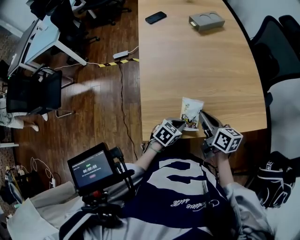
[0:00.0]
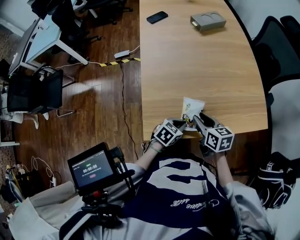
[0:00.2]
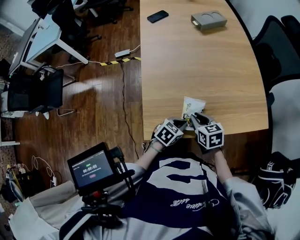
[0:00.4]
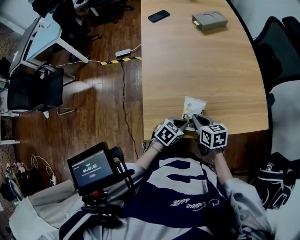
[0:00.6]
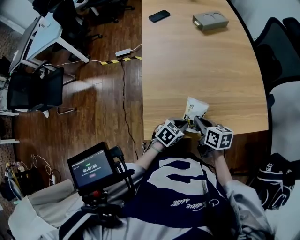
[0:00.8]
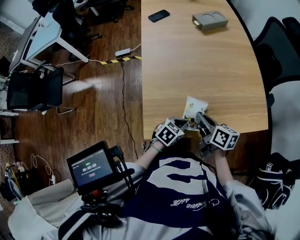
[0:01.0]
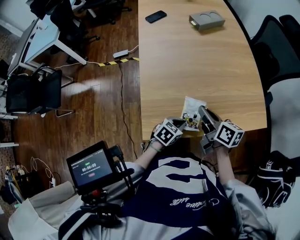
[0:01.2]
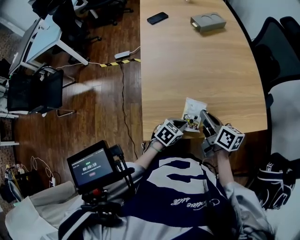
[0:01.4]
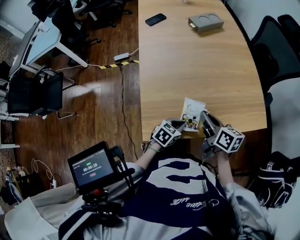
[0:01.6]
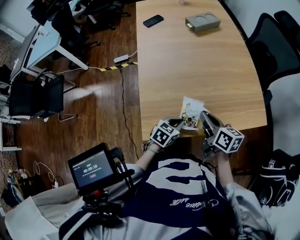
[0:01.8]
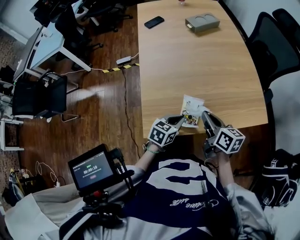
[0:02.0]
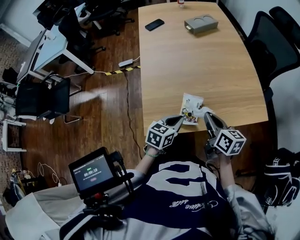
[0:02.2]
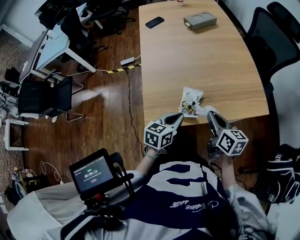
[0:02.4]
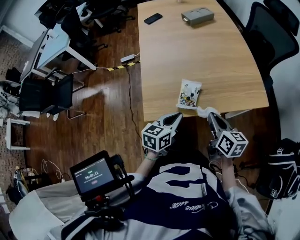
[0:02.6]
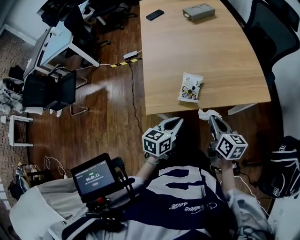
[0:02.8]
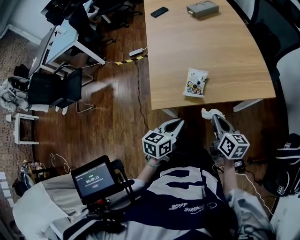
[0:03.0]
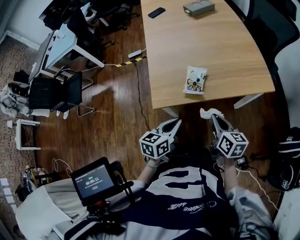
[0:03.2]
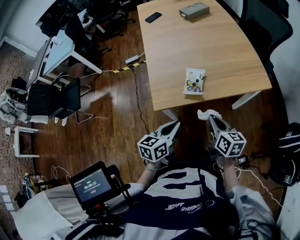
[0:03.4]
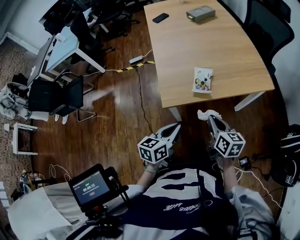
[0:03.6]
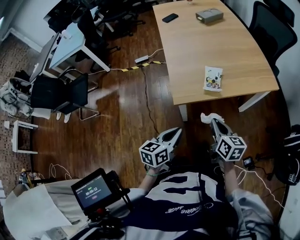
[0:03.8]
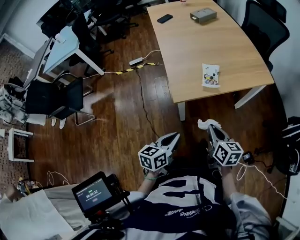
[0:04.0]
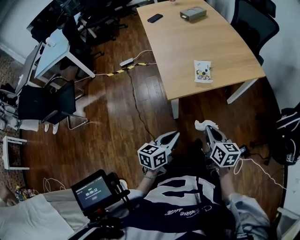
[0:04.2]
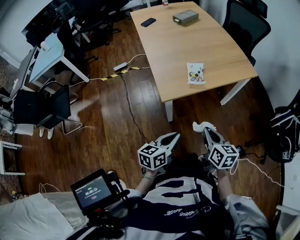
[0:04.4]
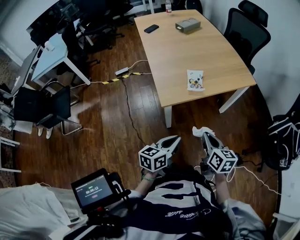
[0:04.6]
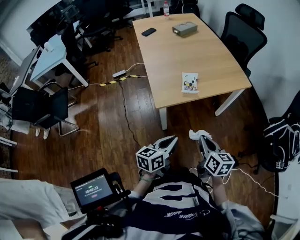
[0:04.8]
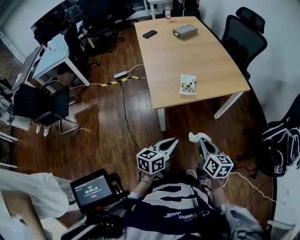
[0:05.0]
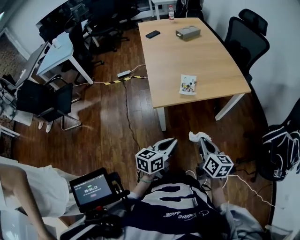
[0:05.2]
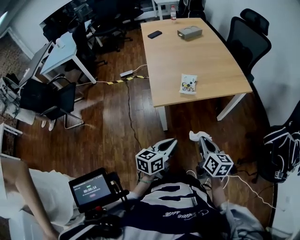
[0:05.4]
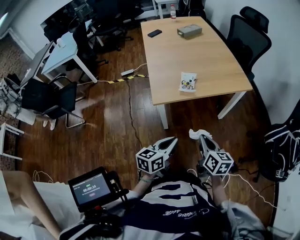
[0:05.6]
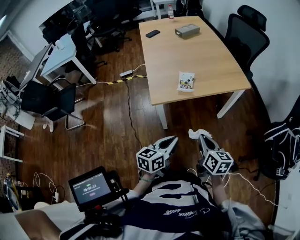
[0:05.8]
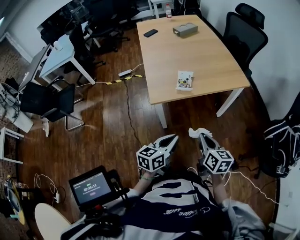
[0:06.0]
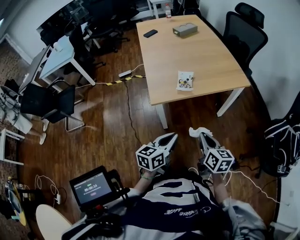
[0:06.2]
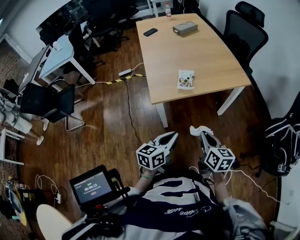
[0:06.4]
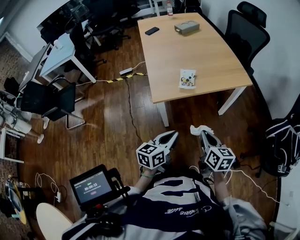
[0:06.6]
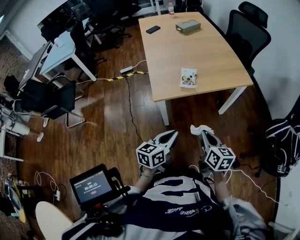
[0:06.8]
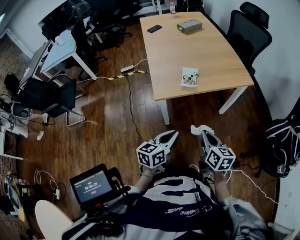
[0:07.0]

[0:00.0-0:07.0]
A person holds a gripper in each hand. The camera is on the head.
0:00.0 to 0:01.4: The right gripper reaches approximately 5 cm downward, then returns, and opens, then closes again.
0:01.4 to 0:02.8: The right gripper heads backward and to the right, covering about 20 cm. The left gripper goes about 20 cm backward and upward, and changes its angle by roughly 30 degrees.
0:02.8 to 0:04.2: The two grippers go some 25 cm backward and to the left.
0:04.2 to 0:05.6: The grippers both shift to the right by some 10 cm.
0:05.6 to 0:07.0: The grippers make only small movements.

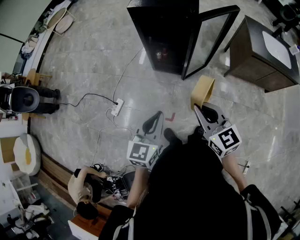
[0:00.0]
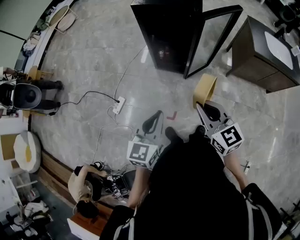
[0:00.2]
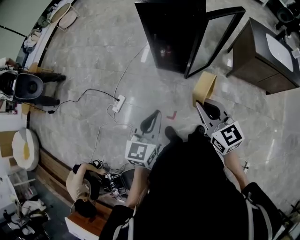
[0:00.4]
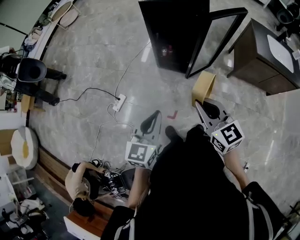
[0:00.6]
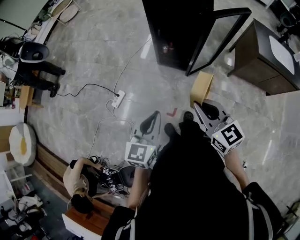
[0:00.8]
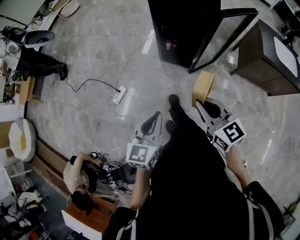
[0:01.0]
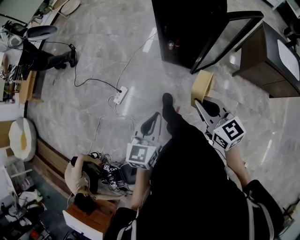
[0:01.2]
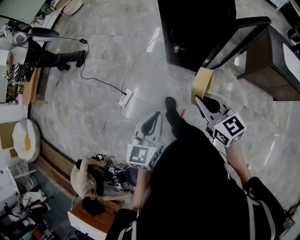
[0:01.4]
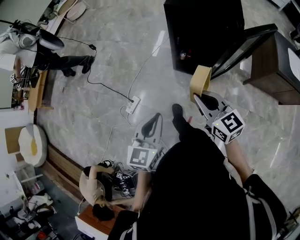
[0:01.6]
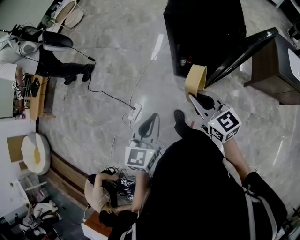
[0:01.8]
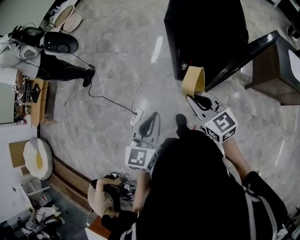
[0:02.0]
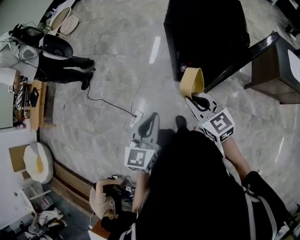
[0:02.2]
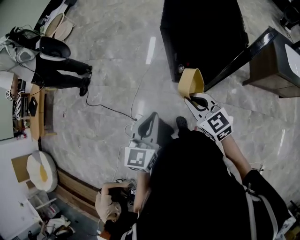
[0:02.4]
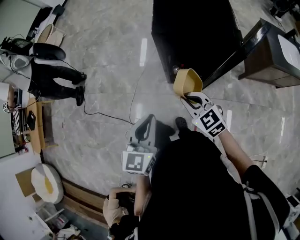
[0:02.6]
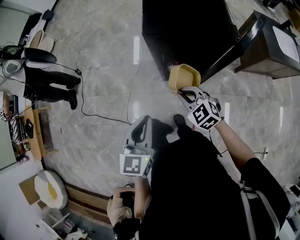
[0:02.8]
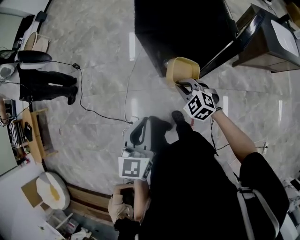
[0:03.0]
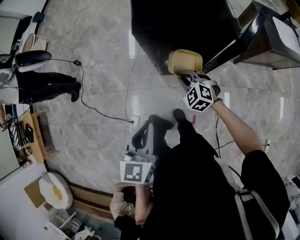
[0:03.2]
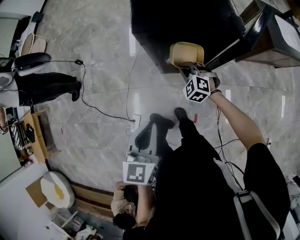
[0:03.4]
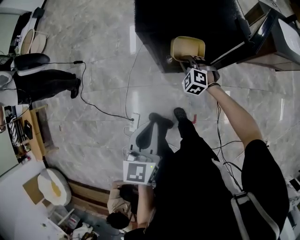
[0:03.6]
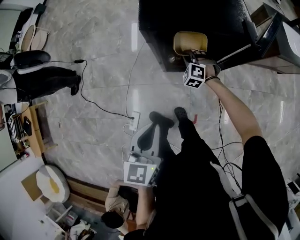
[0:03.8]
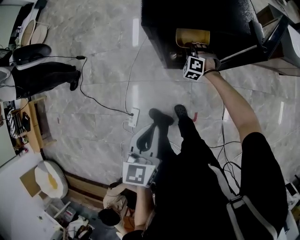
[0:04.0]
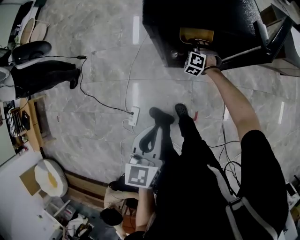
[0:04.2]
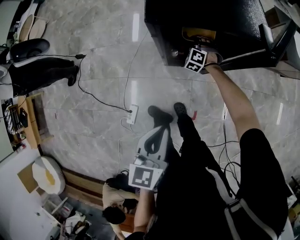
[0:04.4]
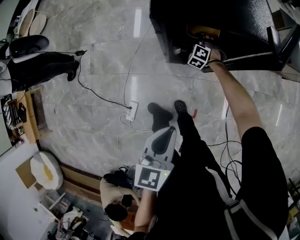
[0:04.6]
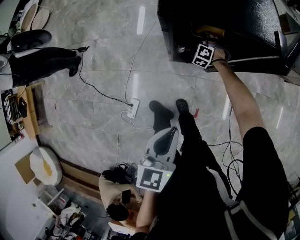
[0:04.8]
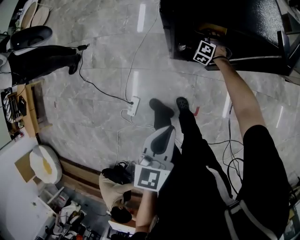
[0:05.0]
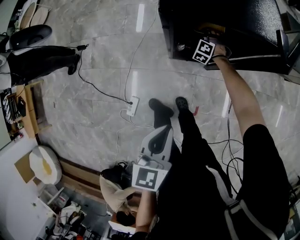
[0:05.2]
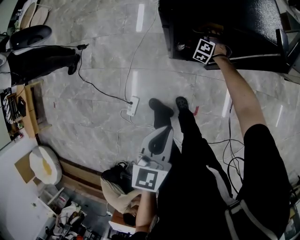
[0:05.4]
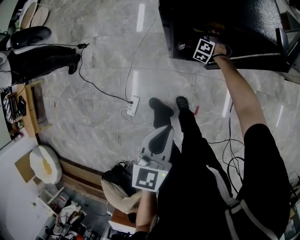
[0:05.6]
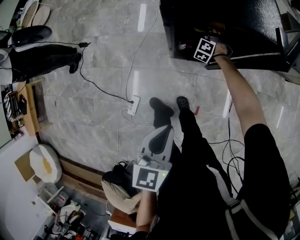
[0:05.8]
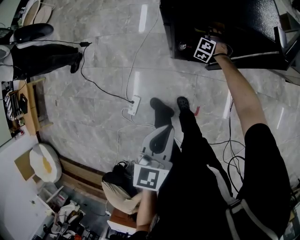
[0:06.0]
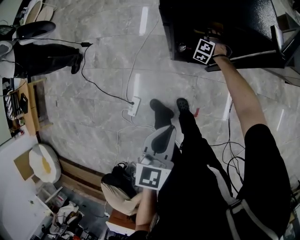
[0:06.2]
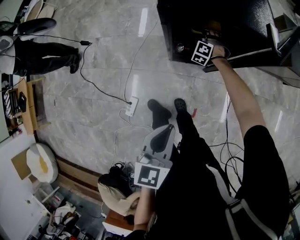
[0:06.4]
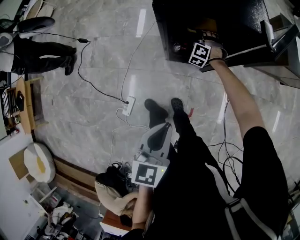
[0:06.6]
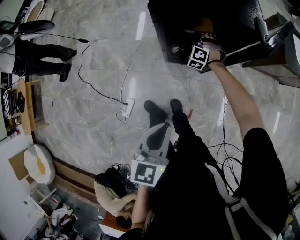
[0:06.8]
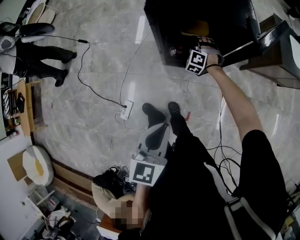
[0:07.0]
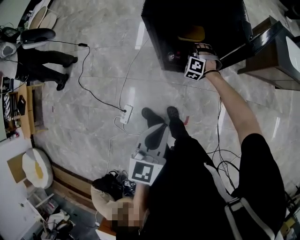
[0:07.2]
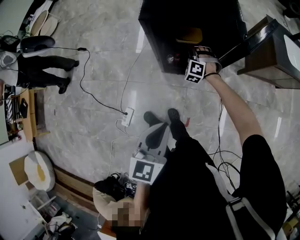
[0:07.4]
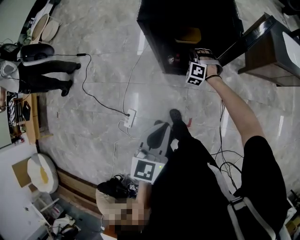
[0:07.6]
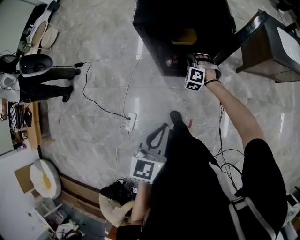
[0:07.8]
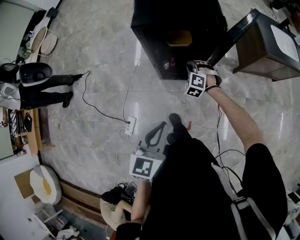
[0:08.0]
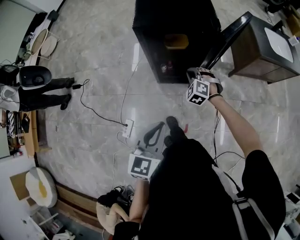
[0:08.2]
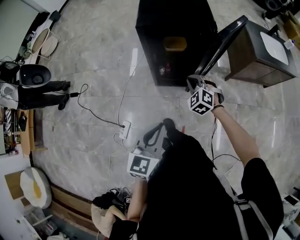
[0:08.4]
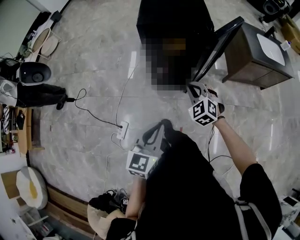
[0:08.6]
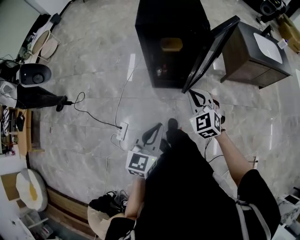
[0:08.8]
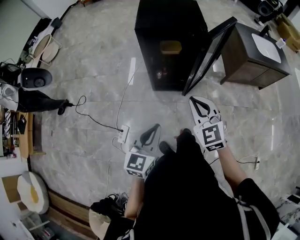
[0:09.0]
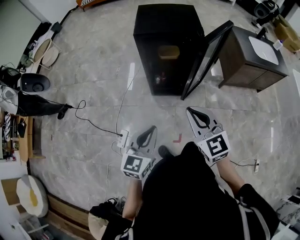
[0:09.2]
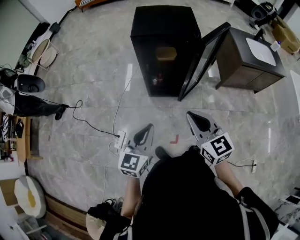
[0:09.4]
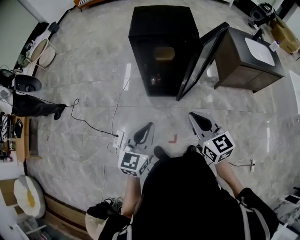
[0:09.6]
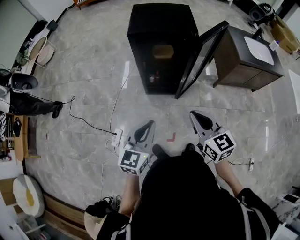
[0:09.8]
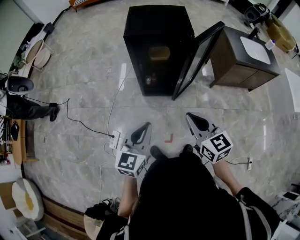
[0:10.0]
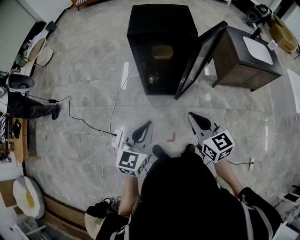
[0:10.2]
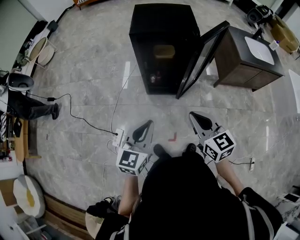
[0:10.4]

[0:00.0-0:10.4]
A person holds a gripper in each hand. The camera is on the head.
0:00.0 to 0:01.4: The right gripper shifts some 15 cm forward and to the left. The left gripper heads to the left and forward, covering about 10 cm.
0:01.4 to 0:03.0: The right gripper is displaced forward and downward by some 30 cm, and changes its angle by about 40 degrees. The left gripper is displaced forward by some 25 cm.
0:03.0 to 0:04.4: The left gripper moves downward, about 5 cm, while the right gripper shifts roughly 30 cm forward and downward, and swivels roughly 40 degrees.
0:04.4 to 0:06.0: The right gripper opens its fingers.
0:06.0 to 0:07.4: The left gripper is displaced to the right by some 10 cm; the right gripper moves upward and backward, some 15 cm, and closes its fingers.
0:07.4 to 0:09.0: The left gripper heads backward, covering some 15 cm. Meanwhile the right gripper travels backward and upward by approximately 50 cm, and twists about 50 degrees clockwise, seen from behind.
0:09.0 to 0:10.4: The right gripper travels backward by some 5 cm, and turns by some 30 degrees.

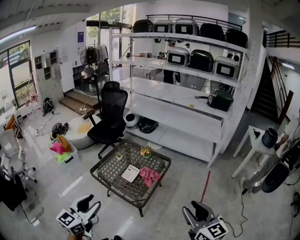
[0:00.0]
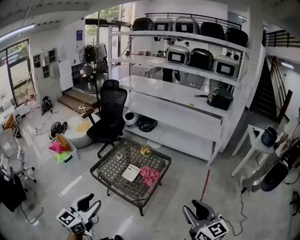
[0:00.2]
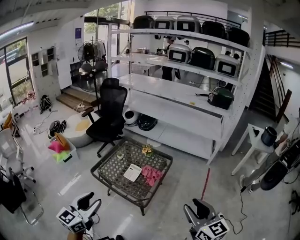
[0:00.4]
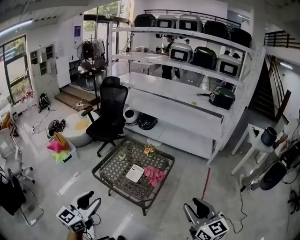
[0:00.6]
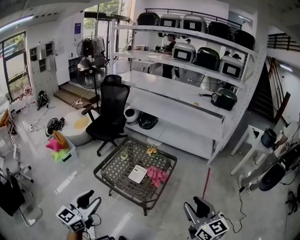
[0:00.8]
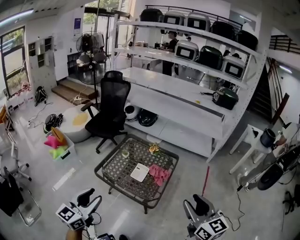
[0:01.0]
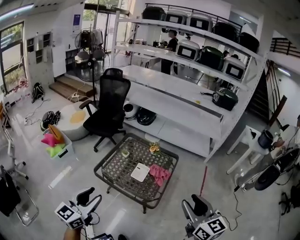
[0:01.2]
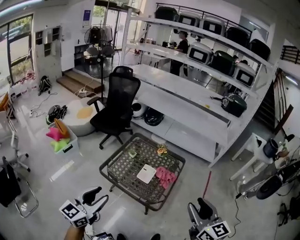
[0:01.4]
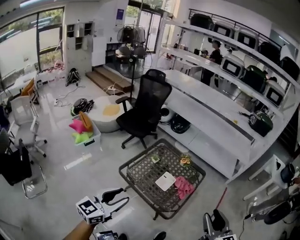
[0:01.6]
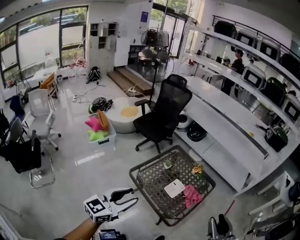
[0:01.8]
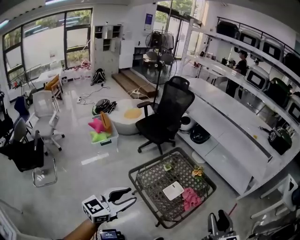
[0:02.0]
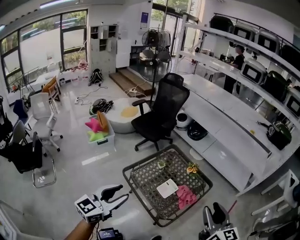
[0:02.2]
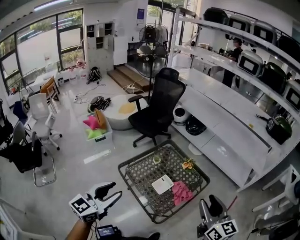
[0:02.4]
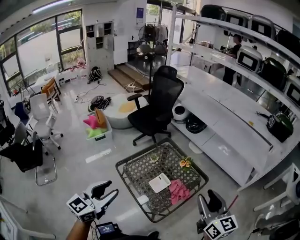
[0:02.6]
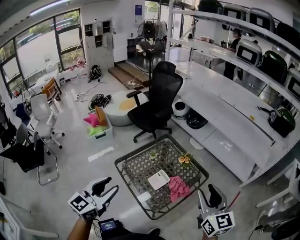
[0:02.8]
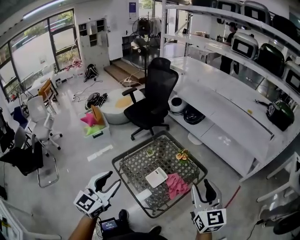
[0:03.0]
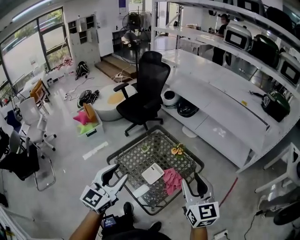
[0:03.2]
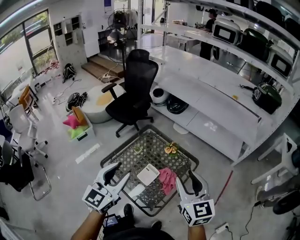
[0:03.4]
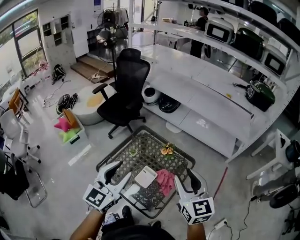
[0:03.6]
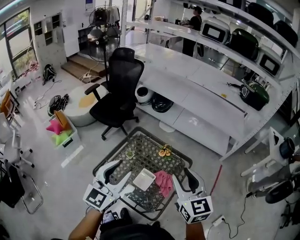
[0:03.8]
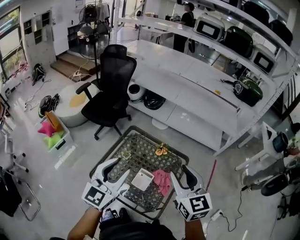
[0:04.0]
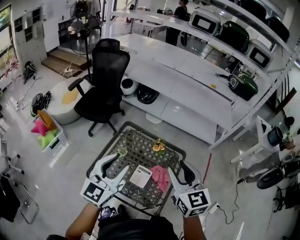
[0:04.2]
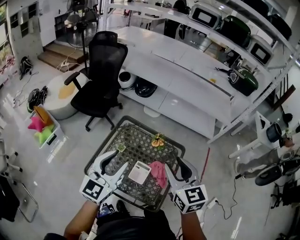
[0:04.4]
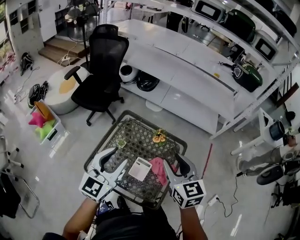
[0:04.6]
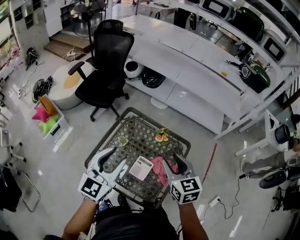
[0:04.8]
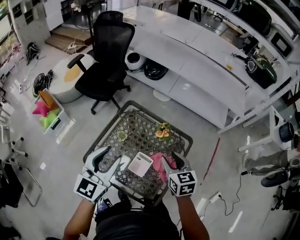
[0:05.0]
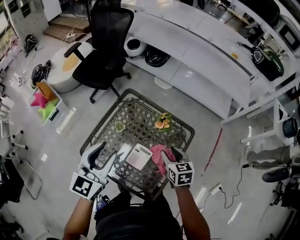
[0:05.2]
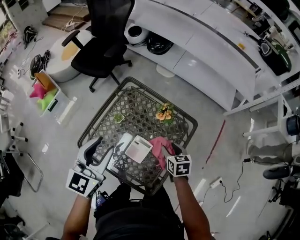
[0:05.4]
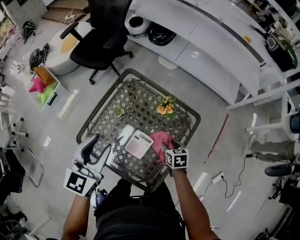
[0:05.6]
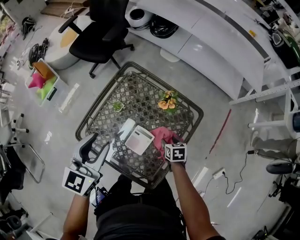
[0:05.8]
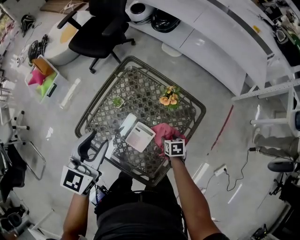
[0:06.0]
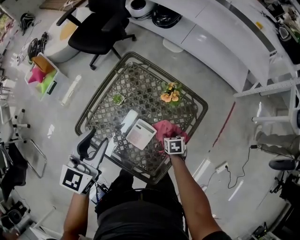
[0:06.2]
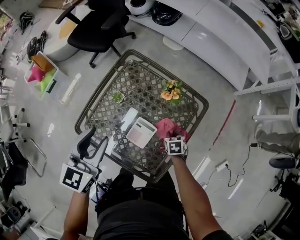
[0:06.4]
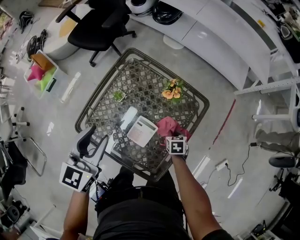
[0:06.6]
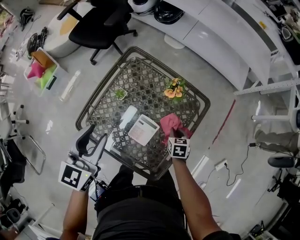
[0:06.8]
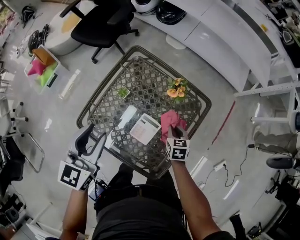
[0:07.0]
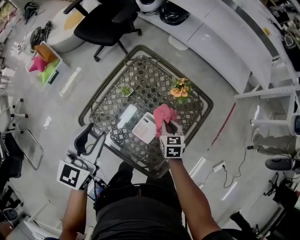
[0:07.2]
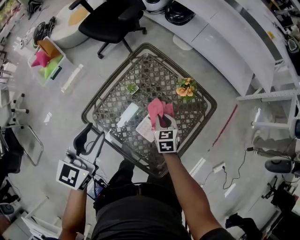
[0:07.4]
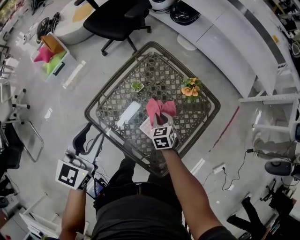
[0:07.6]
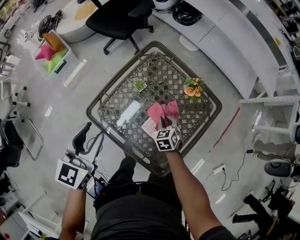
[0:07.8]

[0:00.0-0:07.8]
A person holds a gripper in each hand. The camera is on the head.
0:00.0 to 0:01.6: The two grippers go approximately 20 cm to the left and forward.
0:01.6 to 0:03.2: The left gripper heads to the right and forward, covering roughly 25 cm, and swivels about 20 degrees. The right gripper goes roughly 20 cm forward.
0:03.2 to 0:04.6: The left gripper travels forward by roughly 15 cm, and swivels approximately 20 degrees. The right gripper is displaced to the left, forward and downward by roughly 15 cm.
0:04.6 to 0:06.2: The left gripper moves downward, some 15 cm, and changes its angle by roughly 20 degrees, while the right gripper goes approximately 50 cm downward, and tips its fingers downward by about 50 degrees.
0:06.2 to 0:07.8: The right gripper goes some 15 cm to the left, swivels about 30 degrees, and closes up, while the left gripper heads to the left and backward, covering some 10 cm.
